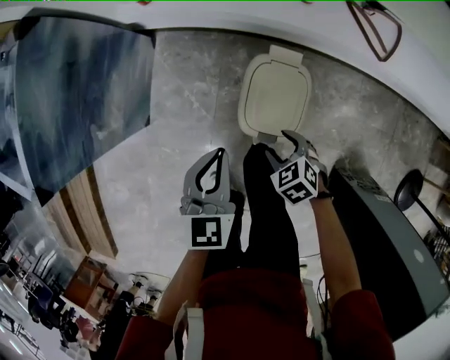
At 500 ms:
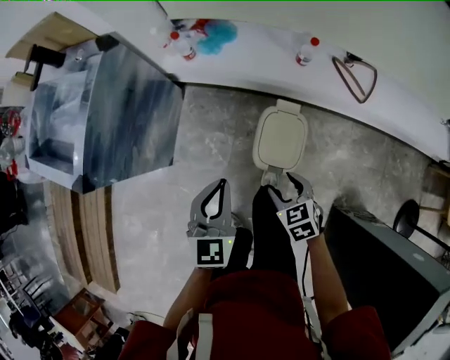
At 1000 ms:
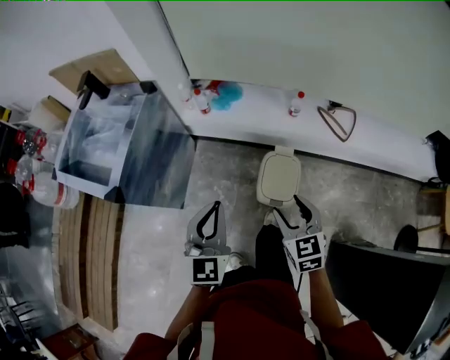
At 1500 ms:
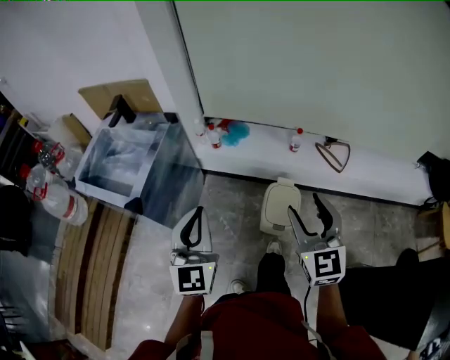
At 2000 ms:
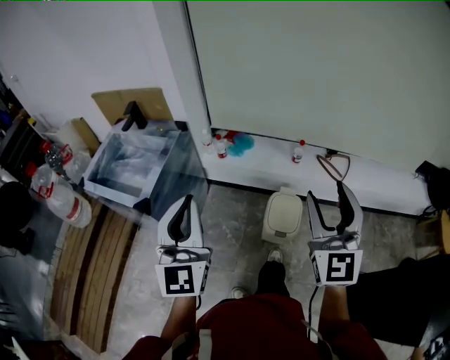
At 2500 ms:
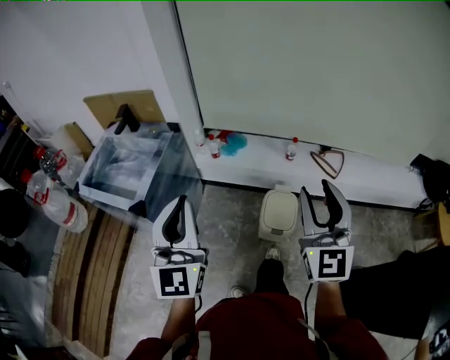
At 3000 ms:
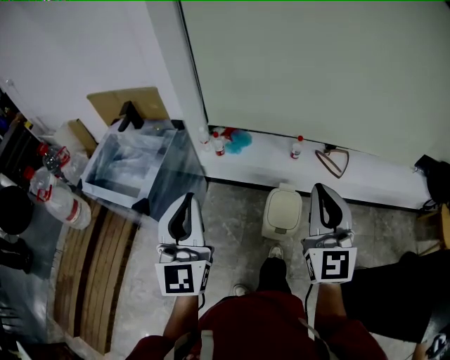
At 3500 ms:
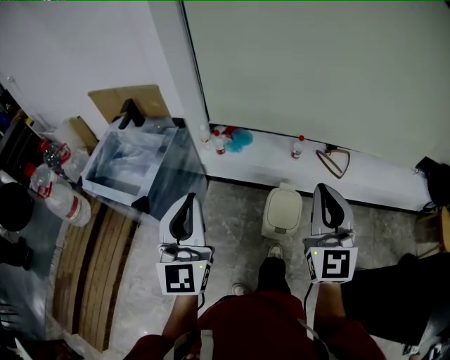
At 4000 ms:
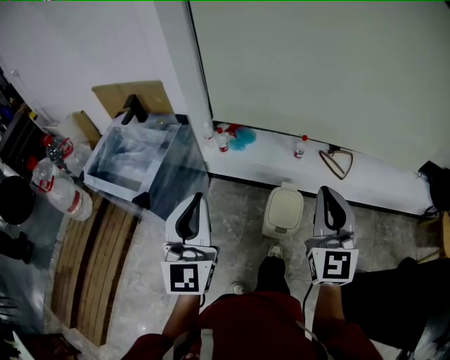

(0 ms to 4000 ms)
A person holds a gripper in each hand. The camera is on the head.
0 ms - 2000 ms: The left gripper moves upward and to the left, roughly 50 cm, and tilts its fingers about 50 degrees upward. The right gripper shifts some 70 cm upward, and points its fingers approximately 70 degrees further upward.
2000 ms - 4000 ms: The right gripper closes its fingers.

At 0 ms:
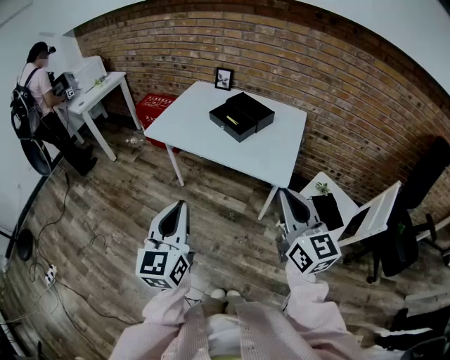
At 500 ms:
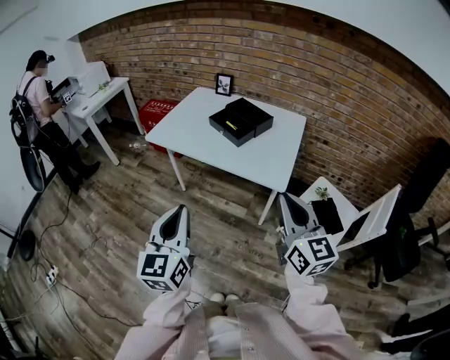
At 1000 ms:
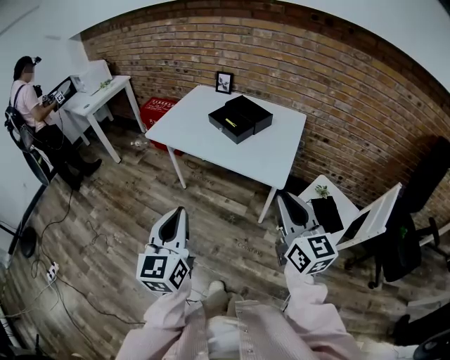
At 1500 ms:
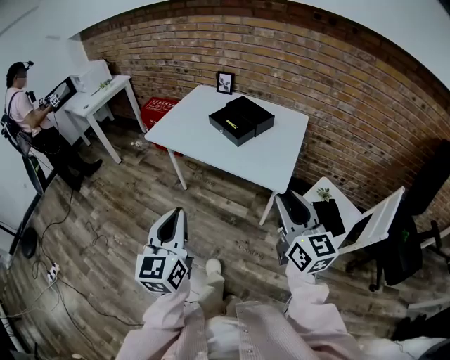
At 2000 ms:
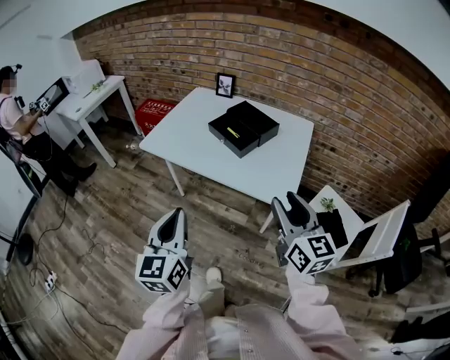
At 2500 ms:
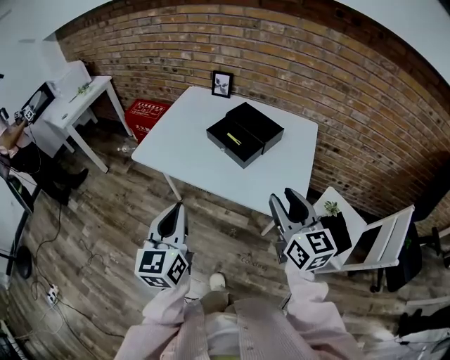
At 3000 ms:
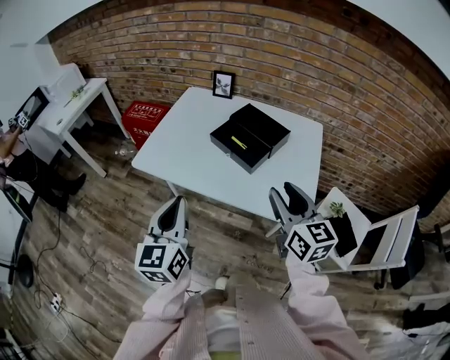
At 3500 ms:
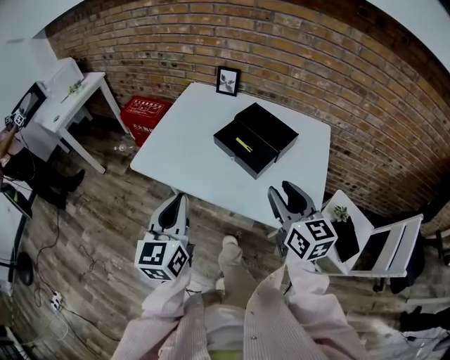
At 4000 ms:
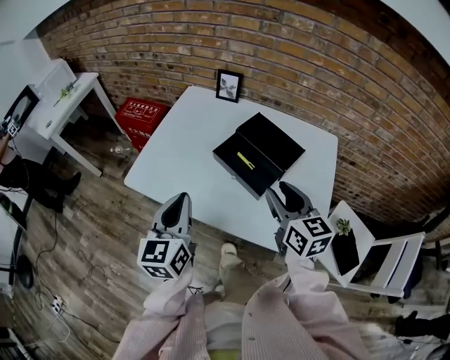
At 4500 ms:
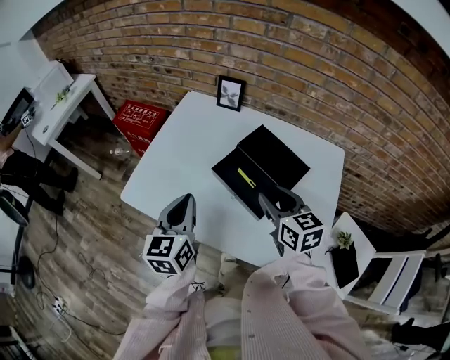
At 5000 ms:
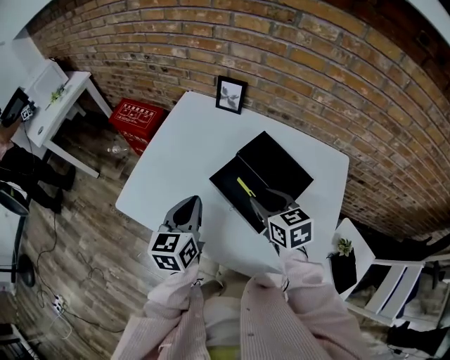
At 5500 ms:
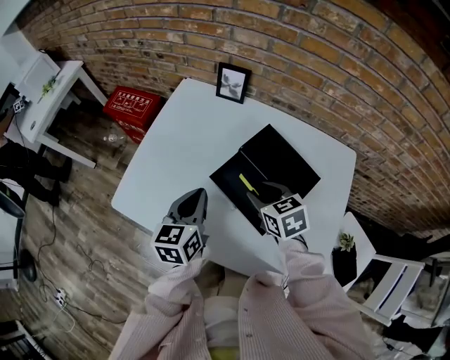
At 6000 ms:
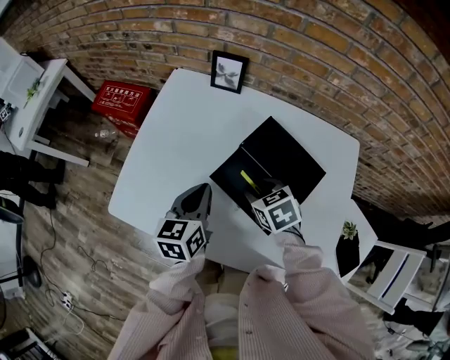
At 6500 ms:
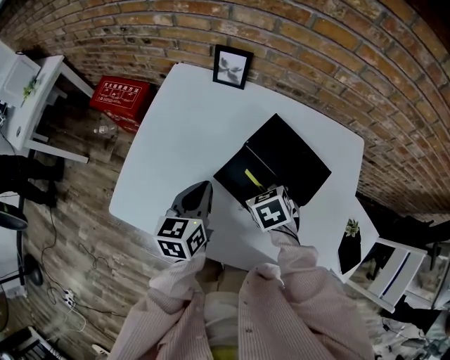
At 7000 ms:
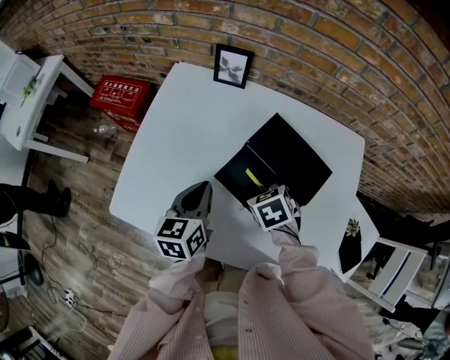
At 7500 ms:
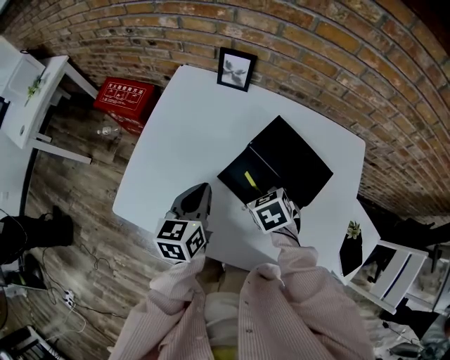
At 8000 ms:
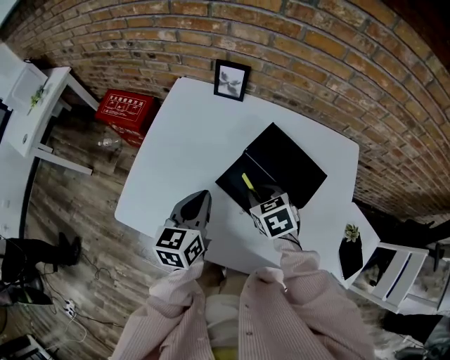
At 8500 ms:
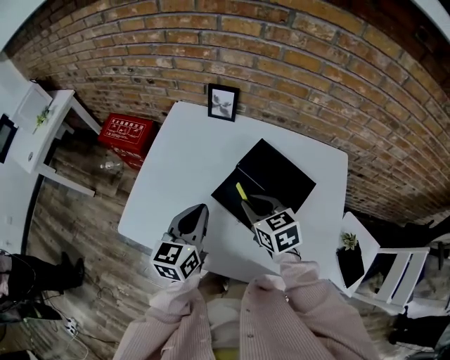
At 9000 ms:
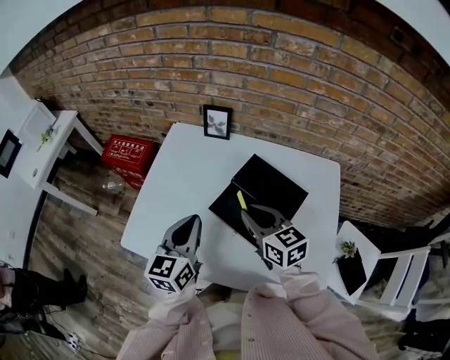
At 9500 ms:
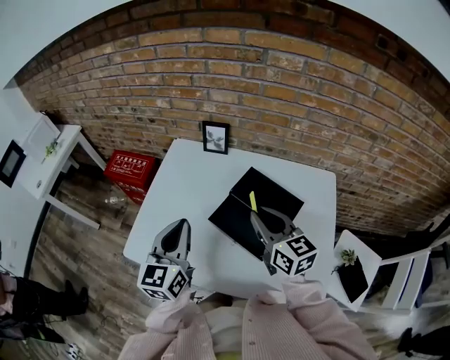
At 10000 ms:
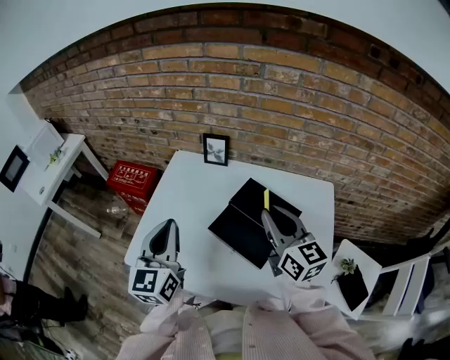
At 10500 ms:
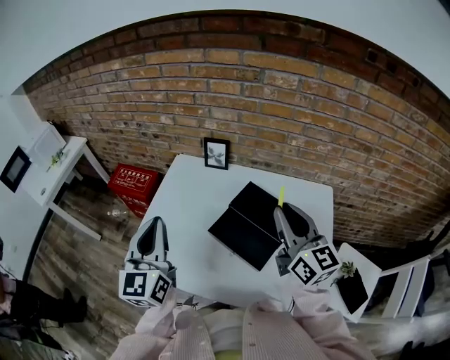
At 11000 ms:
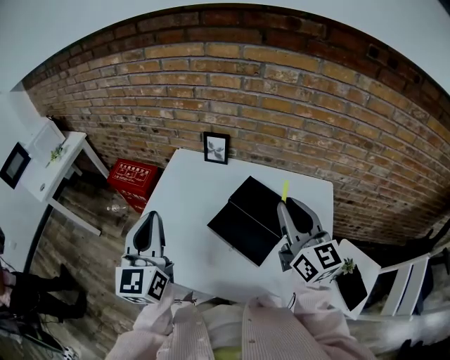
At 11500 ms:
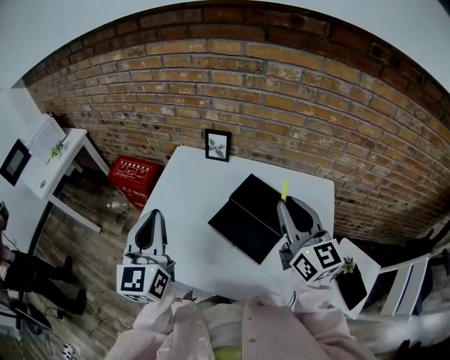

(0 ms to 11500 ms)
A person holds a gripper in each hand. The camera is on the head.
0 ms - 2000 ms: The two grippers go approximately 10 cm forward. The right gripper opens up.
2000 ms - 4000 ms: The grippers both shift forward by about 30 cm.
4000 ms - 6000 ms: The grippers both shift forward and downward by roughly 25 cm. The right gripper tilts its fingers roughly 40 degrees downward. The left gripper turns by about 20 degrees.
6000 ms - 7500 ms: The right gripper closes.
7500 ms - 9500 ms: The grippers both shift upward by about 20 cm. The left gripper turns by approximately 30 degrees. The right gripper angles its fingers upward, by approximately 50 degrees.
9500 ms - 11500 ms: The left gripper goes approximately 10 cm upward. The right gripper is displaced upward and to the right by about 10 cm.

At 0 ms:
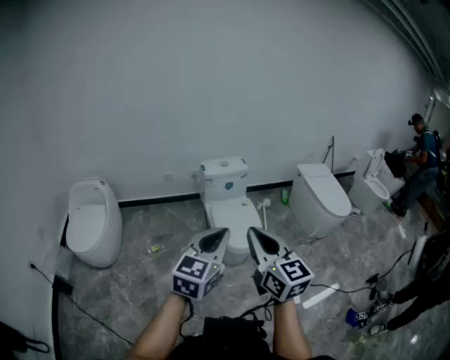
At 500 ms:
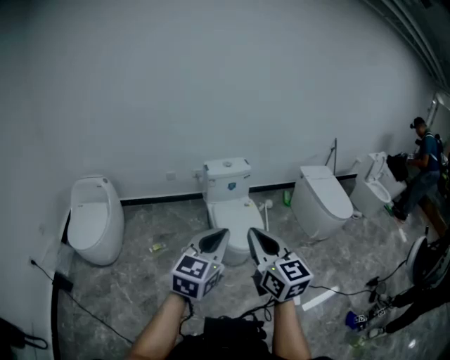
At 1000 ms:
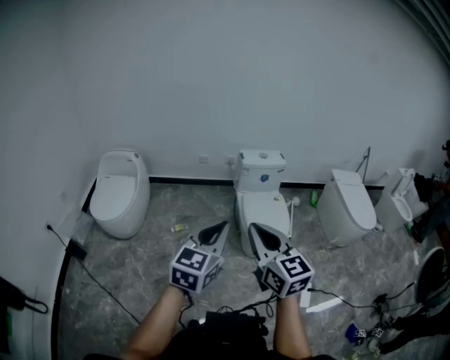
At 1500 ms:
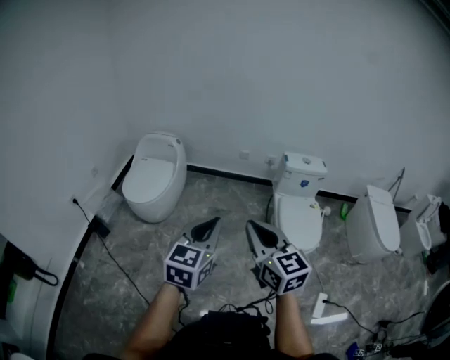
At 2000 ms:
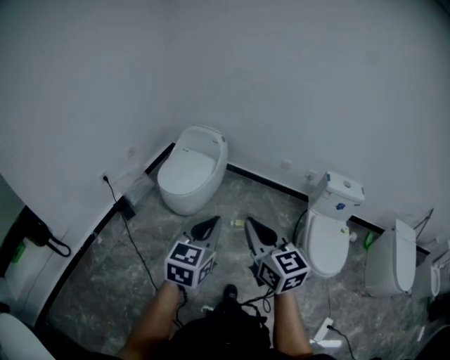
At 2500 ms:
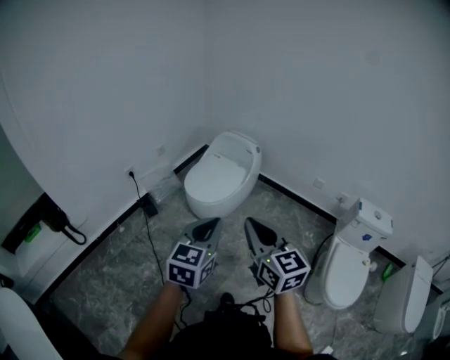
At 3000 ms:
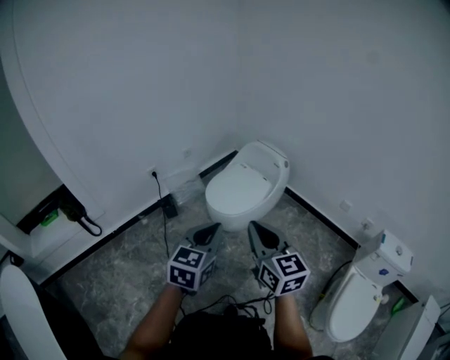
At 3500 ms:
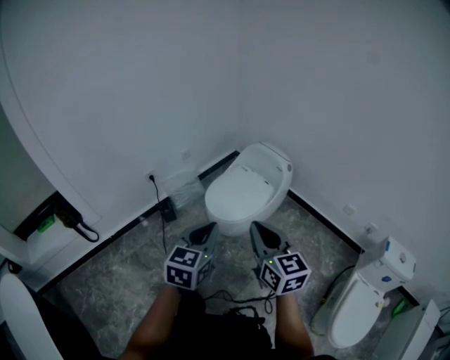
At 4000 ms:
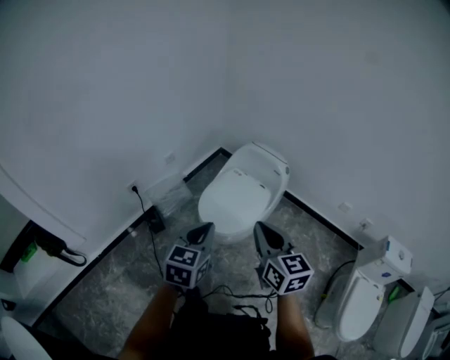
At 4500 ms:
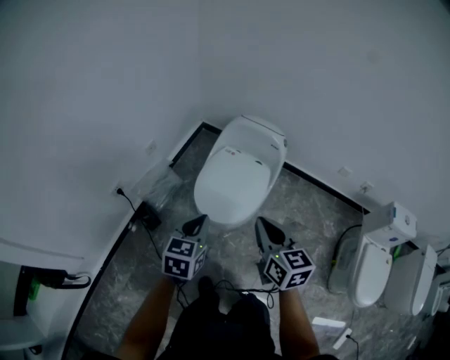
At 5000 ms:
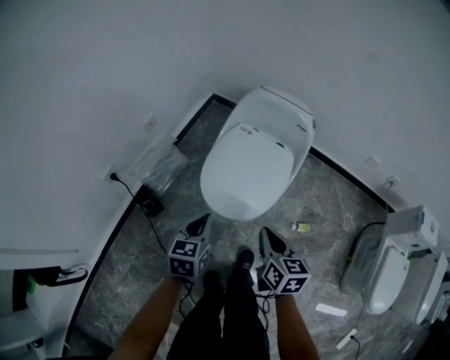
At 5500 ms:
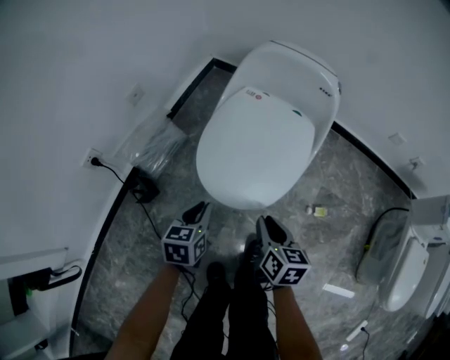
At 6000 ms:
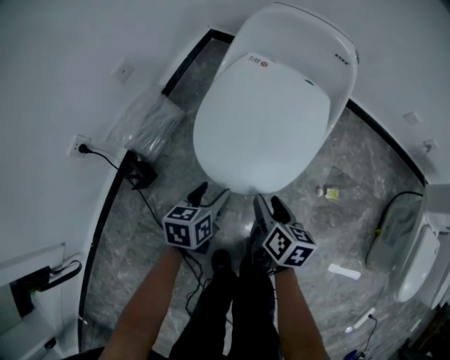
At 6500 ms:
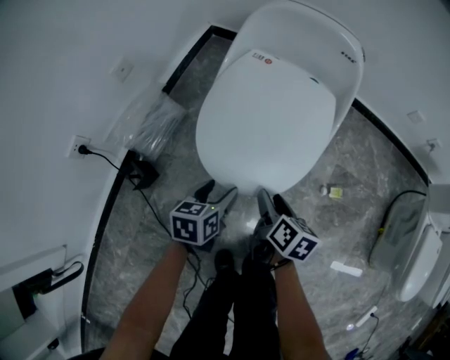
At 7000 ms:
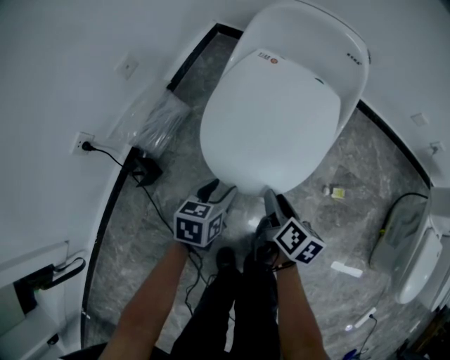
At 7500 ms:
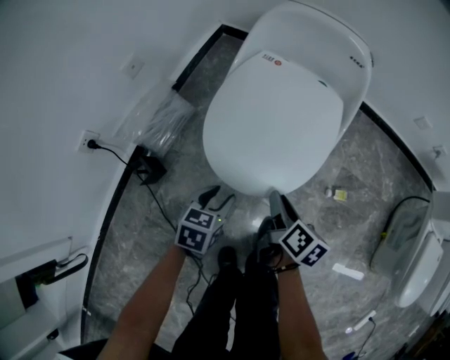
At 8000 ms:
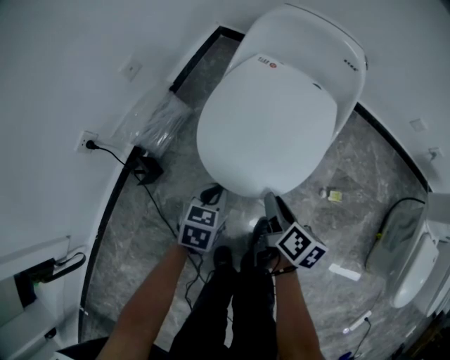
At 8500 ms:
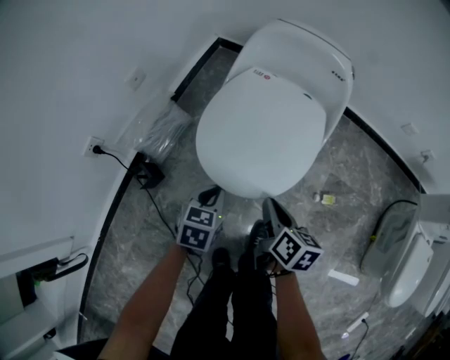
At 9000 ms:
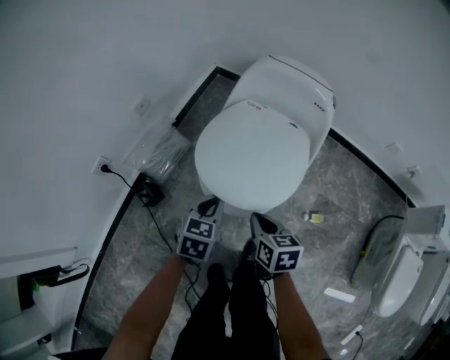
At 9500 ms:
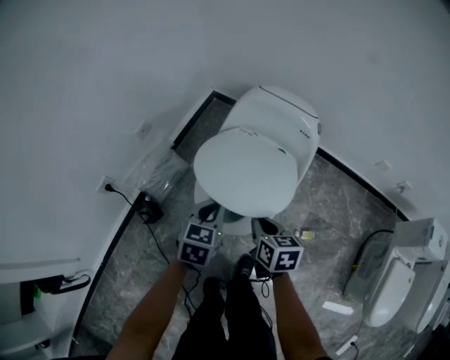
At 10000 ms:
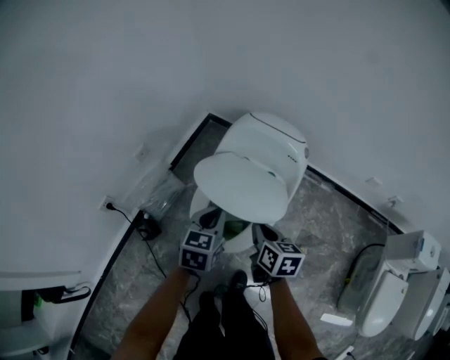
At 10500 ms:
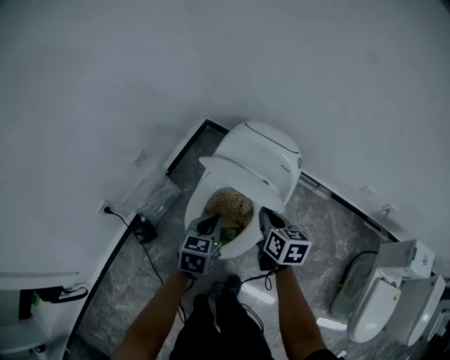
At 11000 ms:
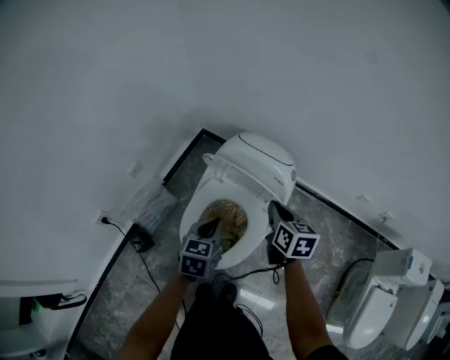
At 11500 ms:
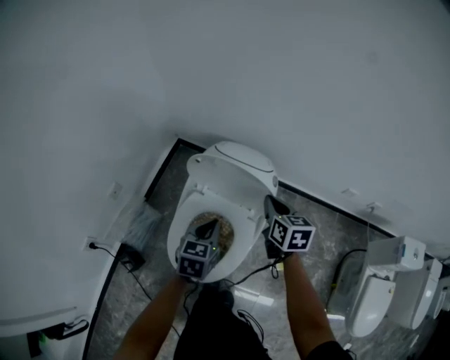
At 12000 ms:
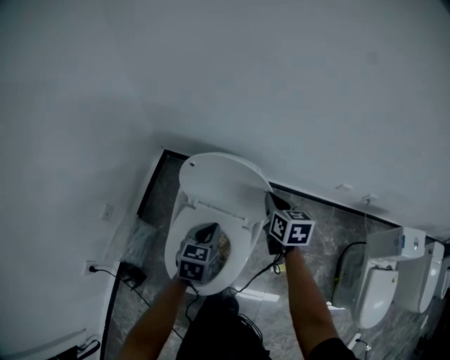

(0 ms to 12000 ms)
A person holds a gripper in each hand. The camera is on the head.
0 ms - 2000 ms: The right gripper shifts by roughly 35 cm, and swivels some 40 degrees, while the left gripper moves some 40 cm, and swivels approximately 40 degrees.
2000 ms - 4000 ms: The left gripper heads forward and to the left, covering about 35 cm, and turns by roughly 20 degrees; the right gripper travels forward by roughly 35 cm.
4000 ms - 6000 ms: The grippers both shift downward by some 50 cm. The left gripper swivels about 30 degrees, and opens. The right gripper swivels approximately 50 degrees, and opens.
6000 ms - 8000 ms: The left gripper closes up.
8000 ms - 10000 ms: Both grippers move upward and forward, about 25 cm. The right gripper swivels some 30 degrees, and closes up.
10000 ms - 12000 ms: The left gripper moves forward and to the right, roughly 15 cm; the right gripper moves forward and to the right, approximately 25 cm.
